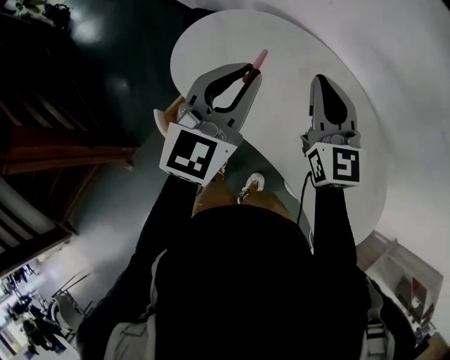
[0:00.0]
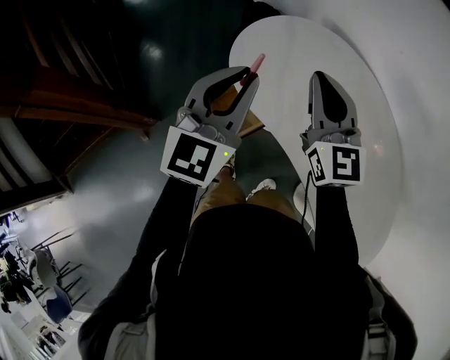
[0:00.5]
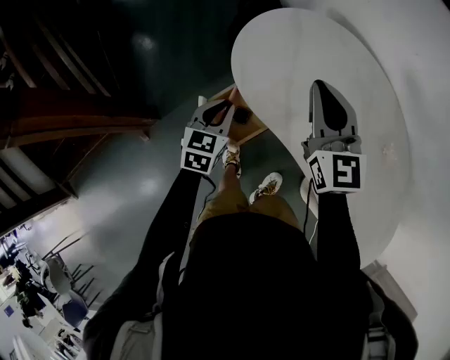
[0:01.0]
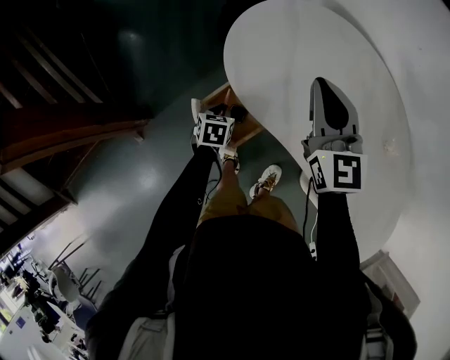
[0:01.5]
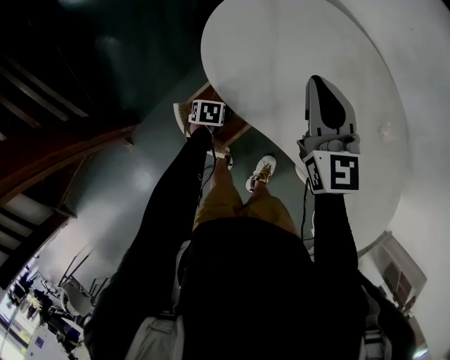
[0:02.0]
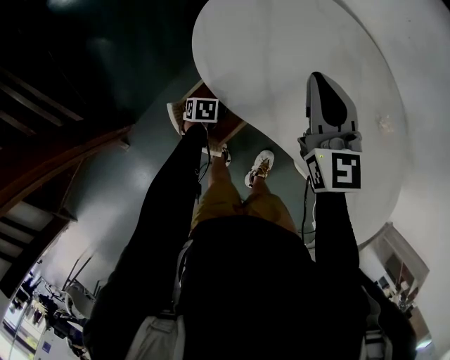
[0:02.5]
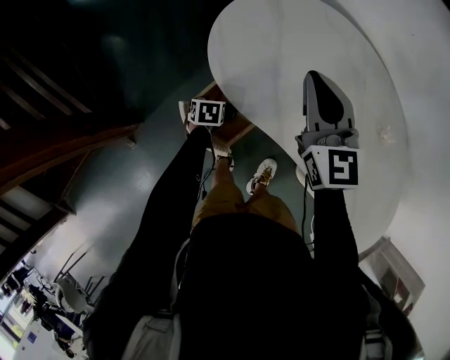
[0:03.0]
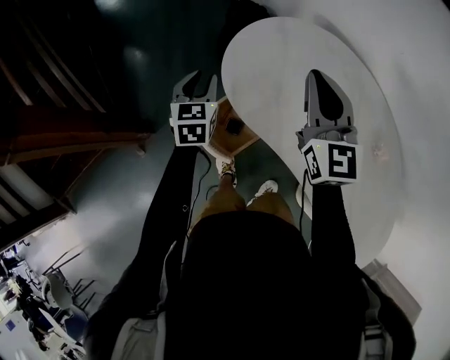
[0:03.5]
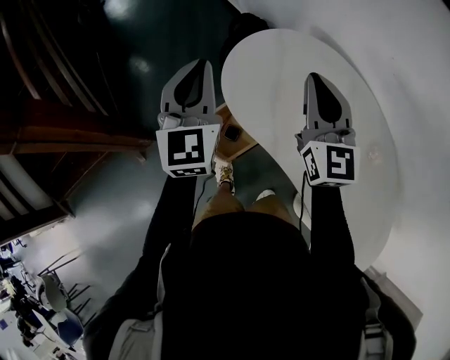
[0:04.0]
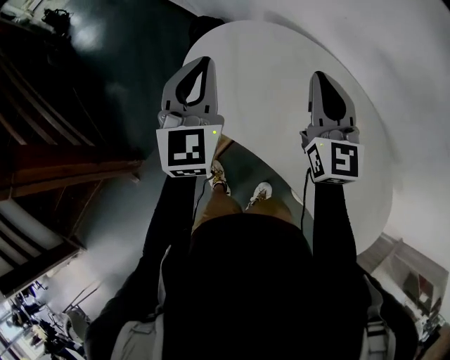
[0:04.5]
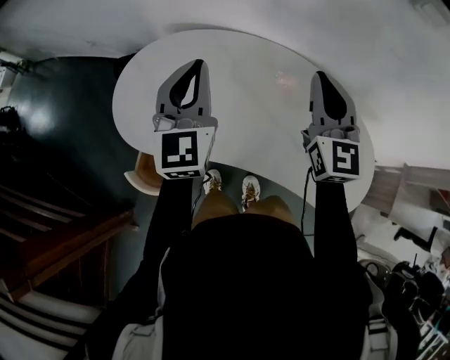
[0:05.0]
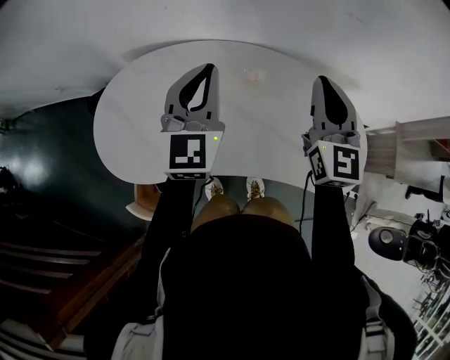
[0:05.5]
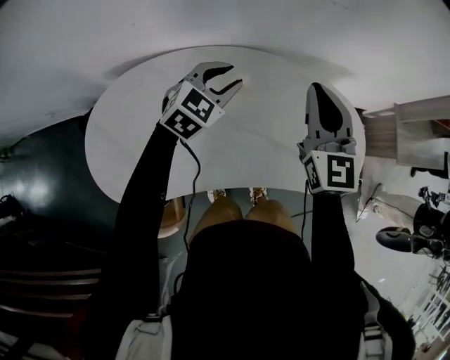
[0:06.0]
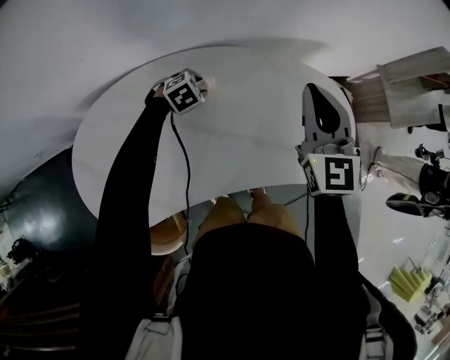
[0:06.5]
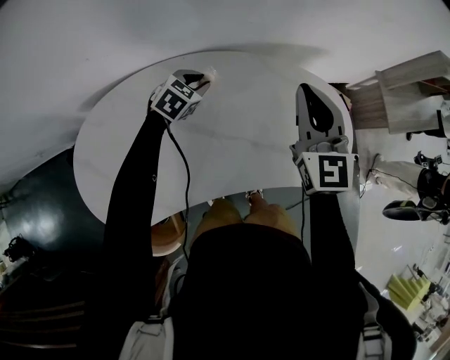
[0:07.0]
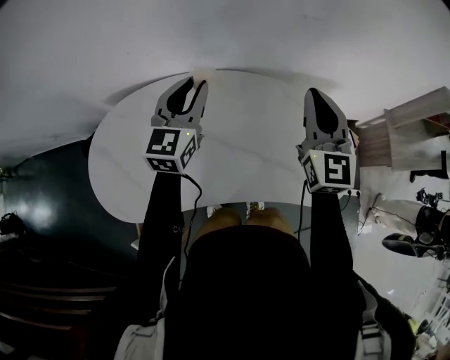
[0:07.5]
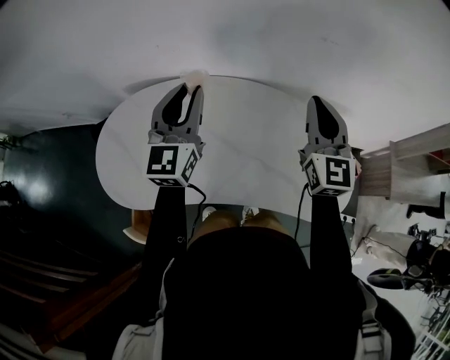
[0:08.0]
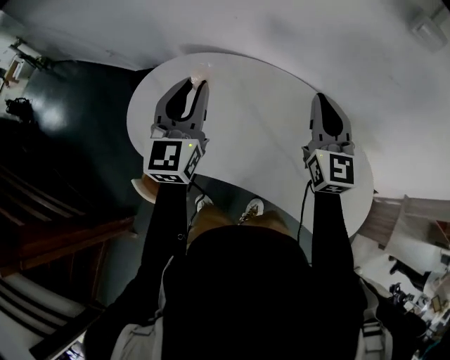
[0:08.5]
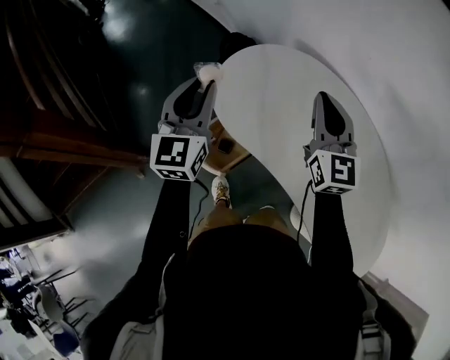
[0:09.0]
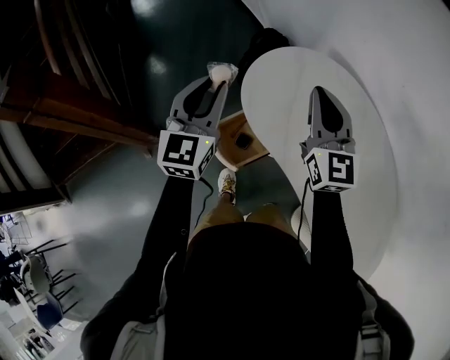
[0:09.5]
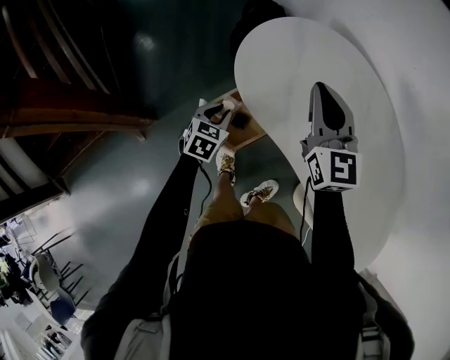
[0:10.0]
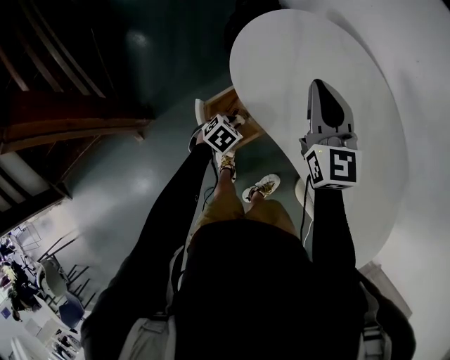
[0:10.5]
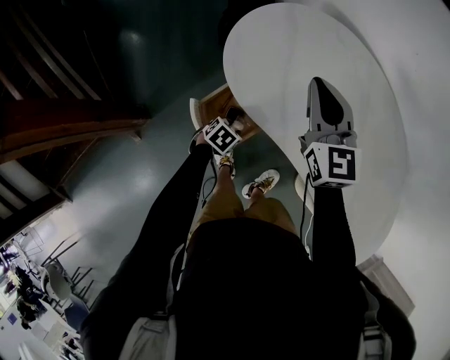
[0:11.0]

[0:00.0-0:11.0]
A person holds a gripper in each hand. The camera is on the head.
0:00.0 to 0:02.0: The right gripper ends up approximately 25 cm from where it was, while the left gripper travels downward by roughly 50 cm, and angles its fingers downward, by roughly 70 degrees.
0:02.0 to 0:03.5: The right gripper moves upward, about 5 cm. The left gripper is displaced upward by approximately 30 cm, and tips its fingers upward by some 40 degrees.
0:03.5 to 0:05.5: The two grippers travel together, some 50 cm. The left gripper swivels about 60 degrees, while the right gripper changes its angle by about 60 degrees.
0:05.5 to 0:07.5: The right gripper ends up some 10 cm from where it was. Meanwhile the left gripper goes downward and returns, roughly 35 cm each way.
0:07.5 to 0:09.0: Both grippers are carried some 40 cm. The left gripper turns by some 60 degrees, while the right gripper turns by roughly 60 degrees.
0:09.0 to 0:11.0: The left gripper moves downward, about 40 cm, and tilts its fingers about 70 degrees downward. Meanwhile the right gripper heads downward, covering about 10 cm.

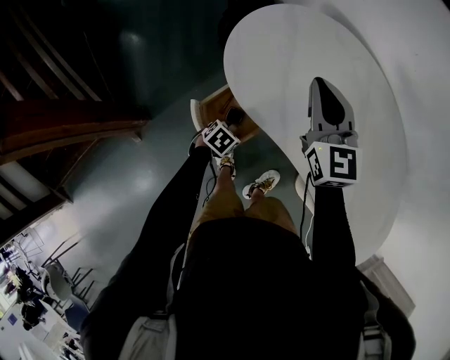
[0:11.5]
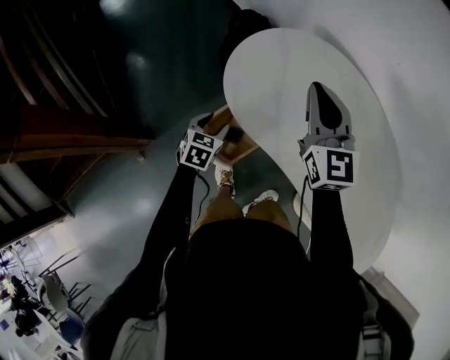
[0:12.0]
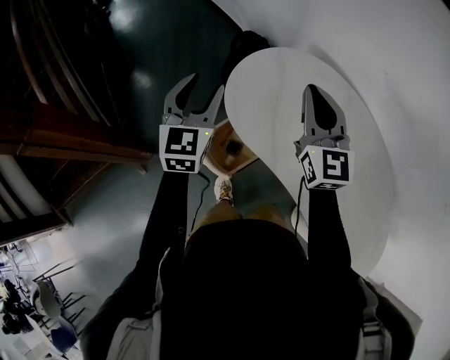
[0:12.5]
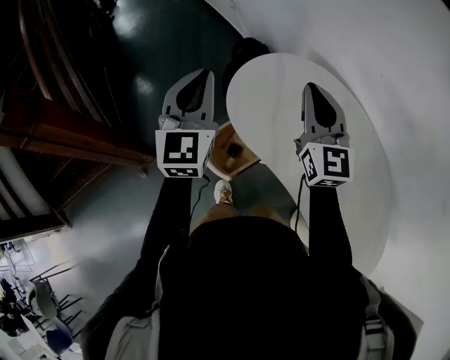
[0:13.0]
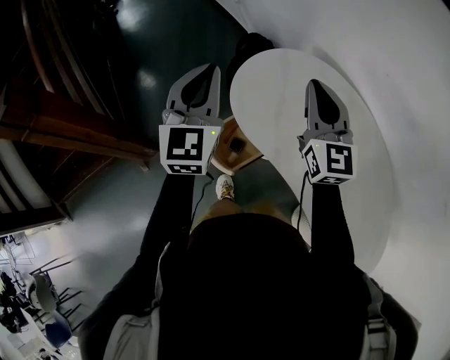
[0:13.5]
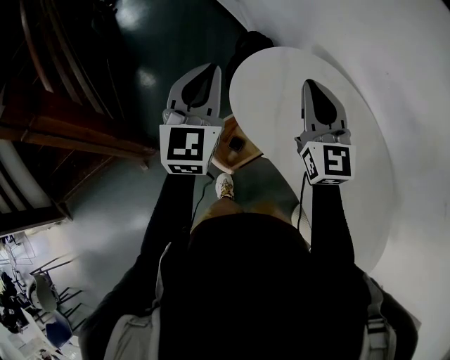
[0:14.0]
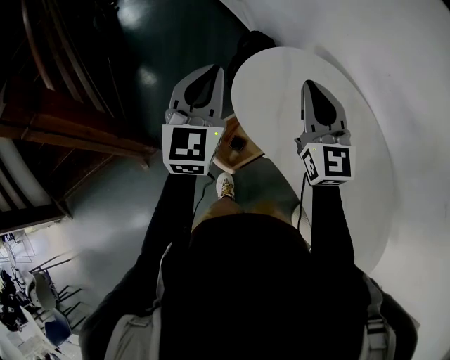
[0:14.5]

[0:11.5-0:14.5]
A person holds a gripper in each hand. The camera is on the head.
0:11.5 to 0:13.0: The right gripper shifts about 10 cm upward, while the left gripper moves upward, some 50 cm, tips its fingers upward by some 70 degrees, and closes its fingers.
0:13.0 to 0:14.5: The grippers stay close to where they were, moving slightly.

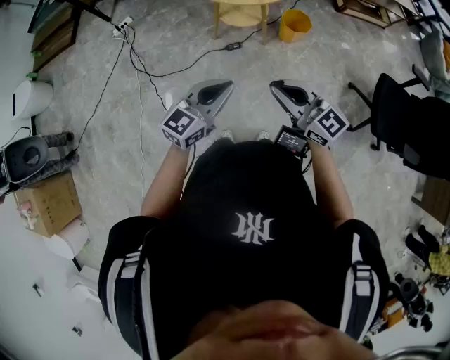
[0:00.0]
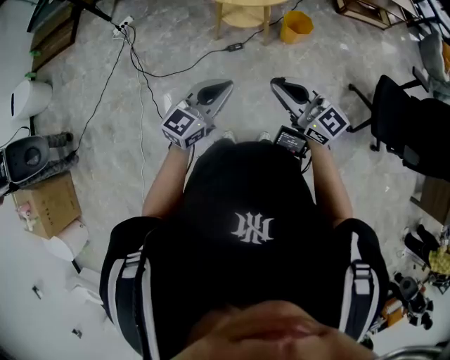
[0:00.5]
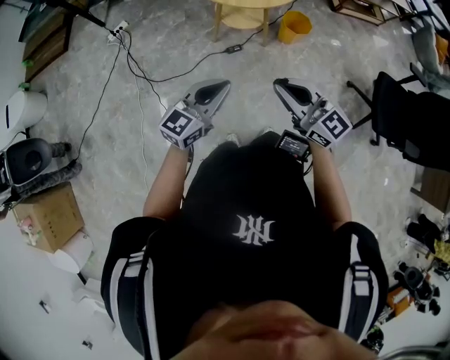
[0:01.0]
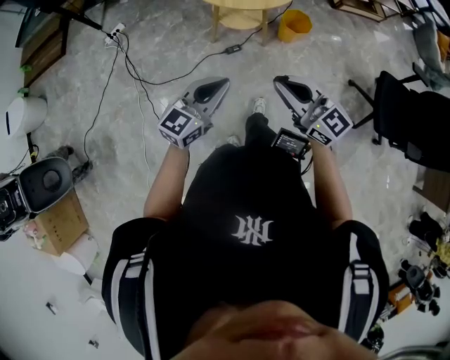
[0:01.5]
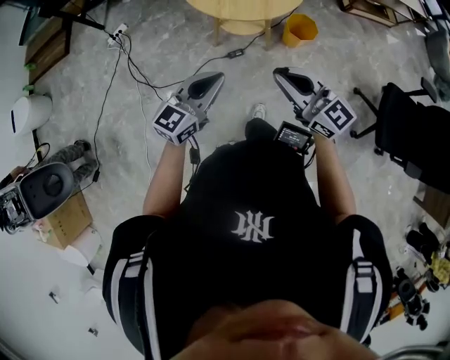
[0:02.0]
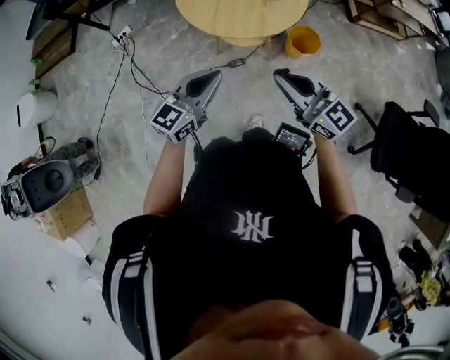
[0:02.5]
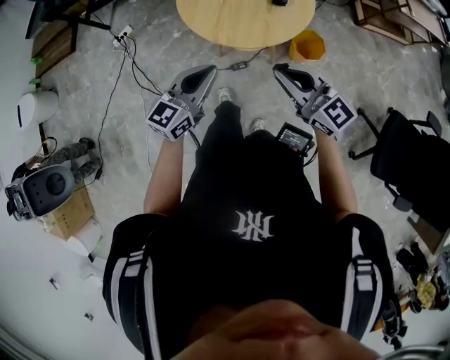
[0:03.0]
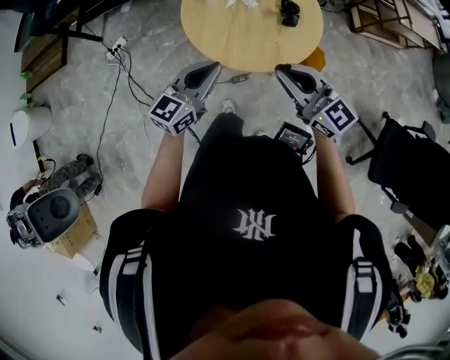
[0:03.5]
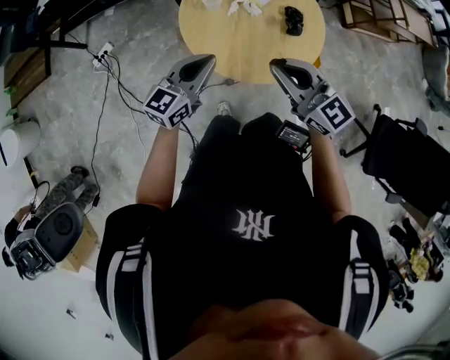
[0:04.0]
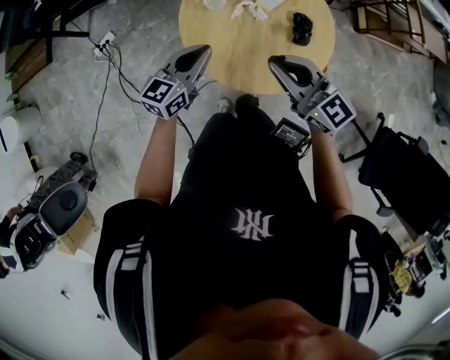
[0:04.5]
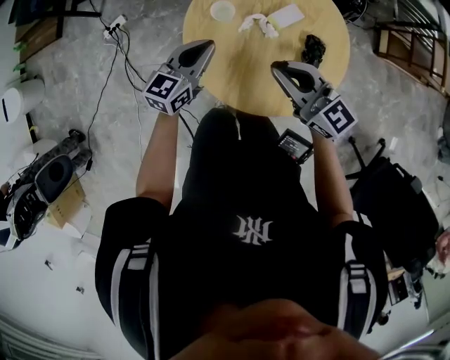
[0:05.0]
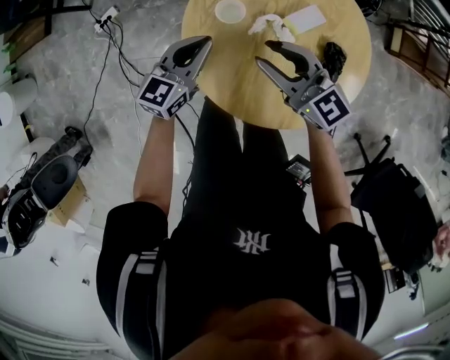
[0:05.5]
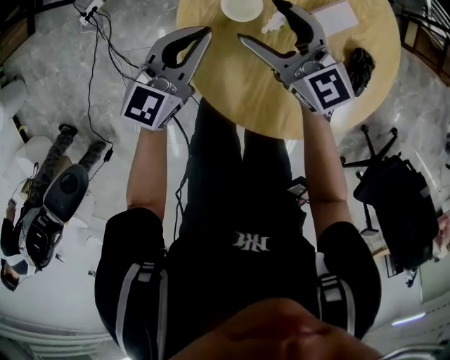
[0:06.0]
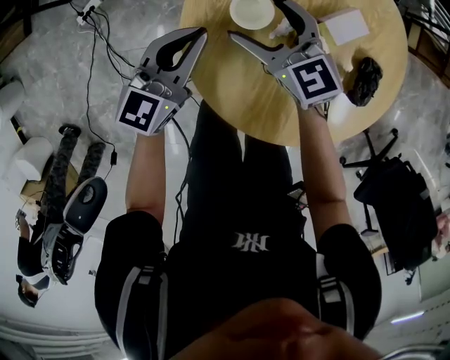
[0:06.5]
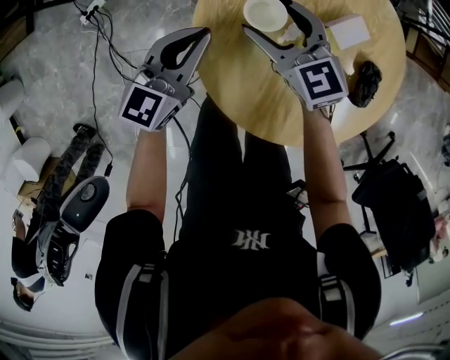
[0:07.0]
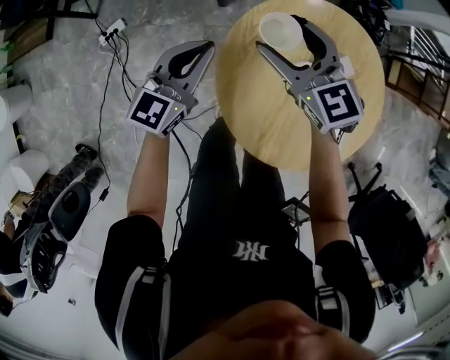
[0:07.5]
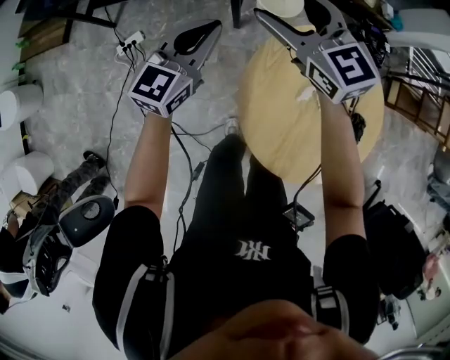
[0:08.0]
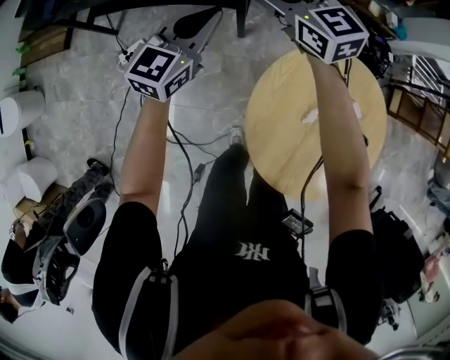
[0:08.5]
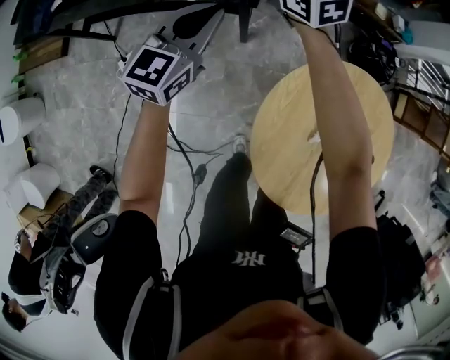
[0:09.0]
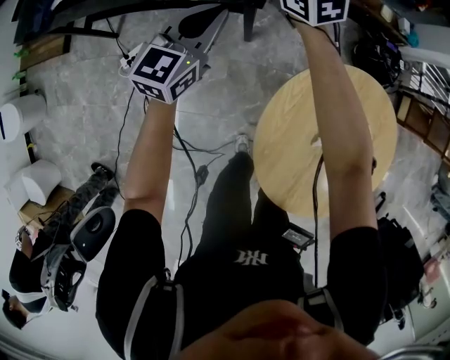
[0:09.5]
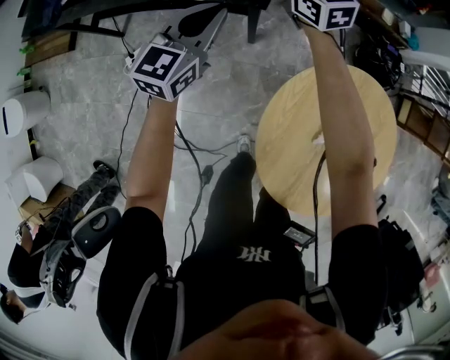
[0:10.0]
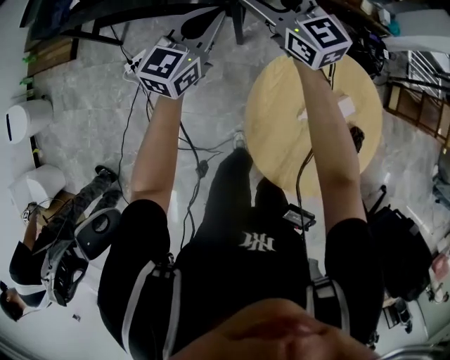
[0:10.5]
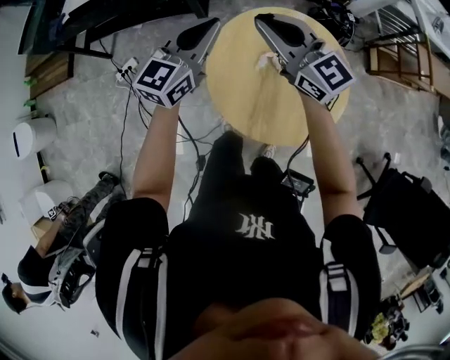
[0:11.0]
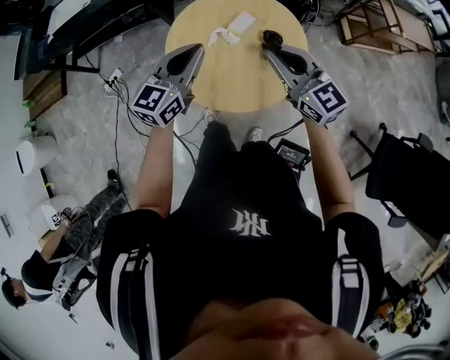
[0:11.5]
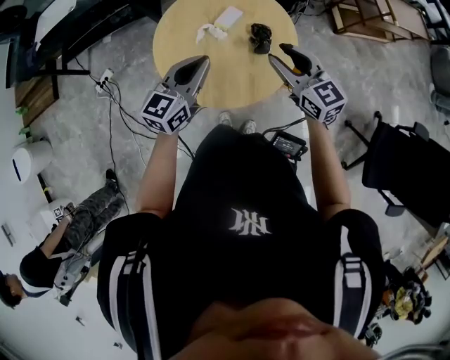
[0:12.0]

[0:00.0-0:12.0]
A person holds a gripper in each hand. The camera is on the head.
0:00.0 to 0:02.0: The grippers both shift forward by roughly 20 cm.
0:02.0 to 0:04.0: Both grippers travel together forward, some 35 cm.
0:04.0 to 0:06.0: Both grippers move forward and downward, about 35 cm. The right gripper opens up.
0:06.0 to 0:08.0: The right gripper heads forward, to the left and upward, covering approximately 35 cm. Meanwhile the left gripper heads to the left, forward and upward, covering about 30 cm.
0:08.0 to 0:10.0: The right gripper goes roughly 25 cm forward; the left gripper travels forward by some 15 cm.
0:10.0 to 0:12.0: The pair of grippers is taken backward and to the right, about 70 cm. The right gripper closes up.
